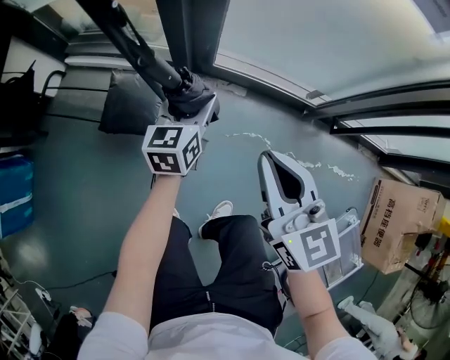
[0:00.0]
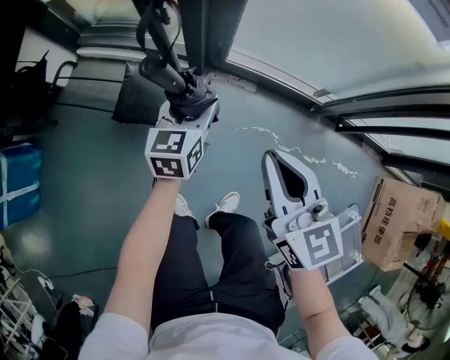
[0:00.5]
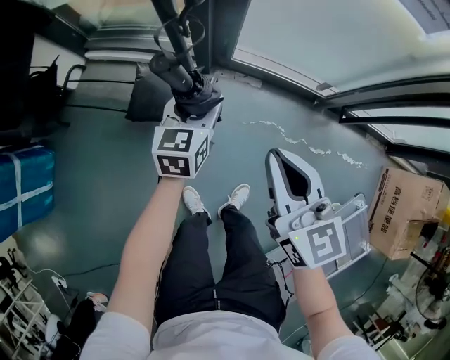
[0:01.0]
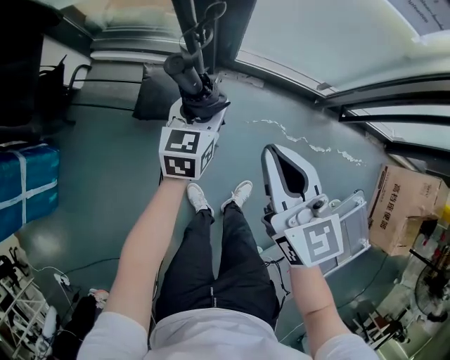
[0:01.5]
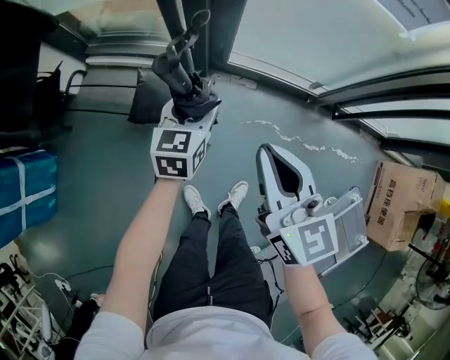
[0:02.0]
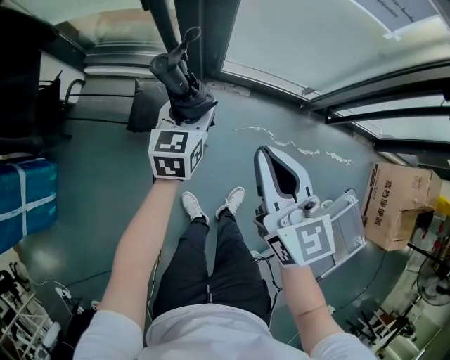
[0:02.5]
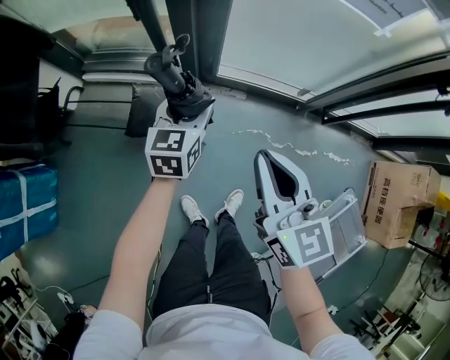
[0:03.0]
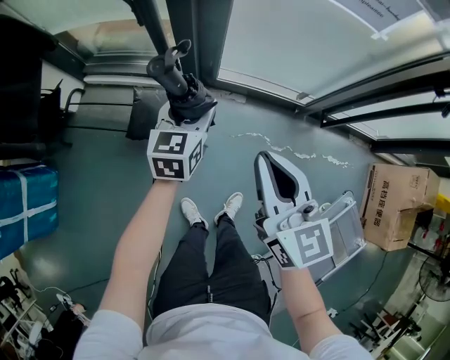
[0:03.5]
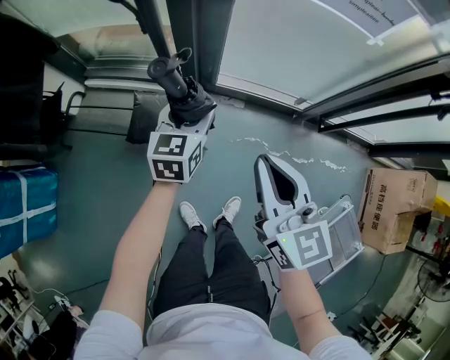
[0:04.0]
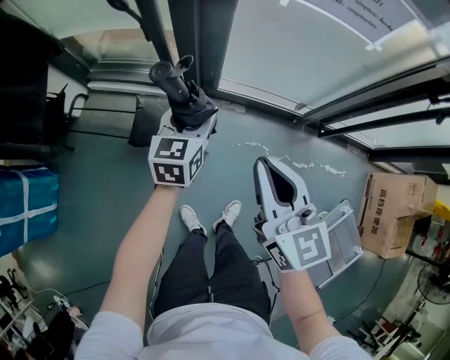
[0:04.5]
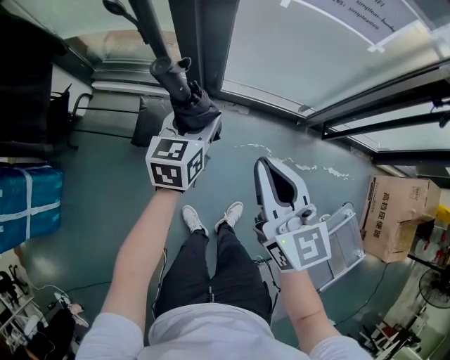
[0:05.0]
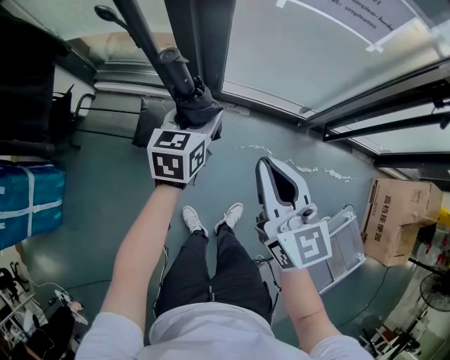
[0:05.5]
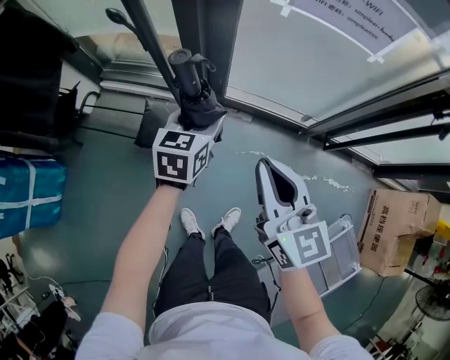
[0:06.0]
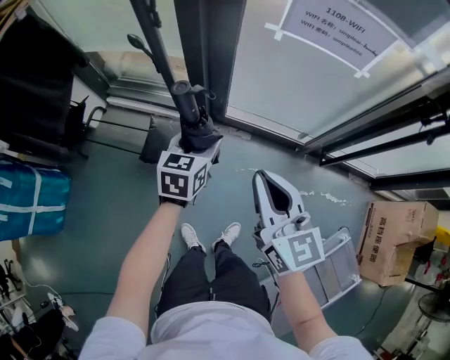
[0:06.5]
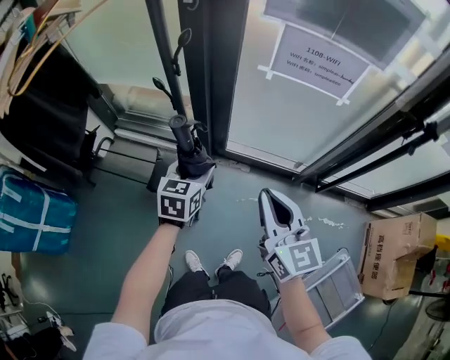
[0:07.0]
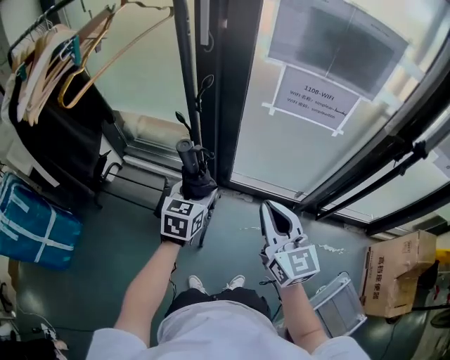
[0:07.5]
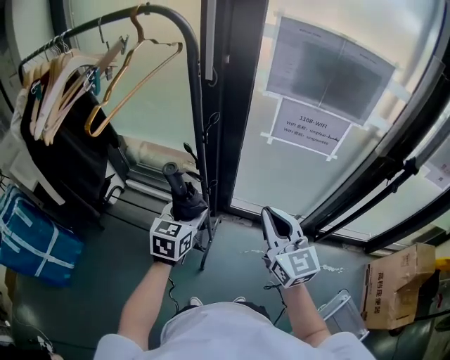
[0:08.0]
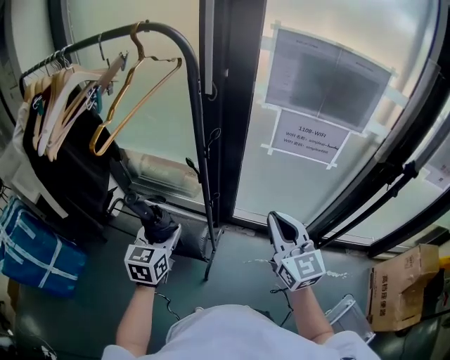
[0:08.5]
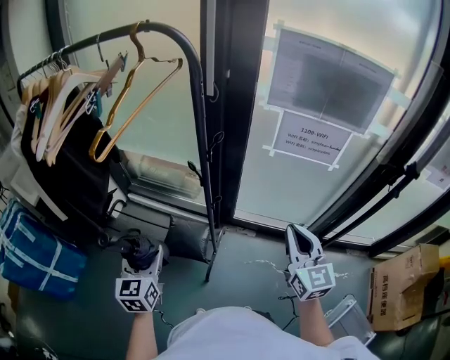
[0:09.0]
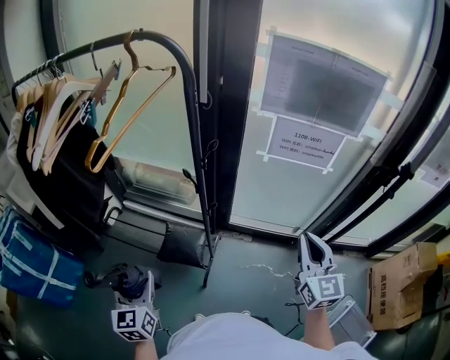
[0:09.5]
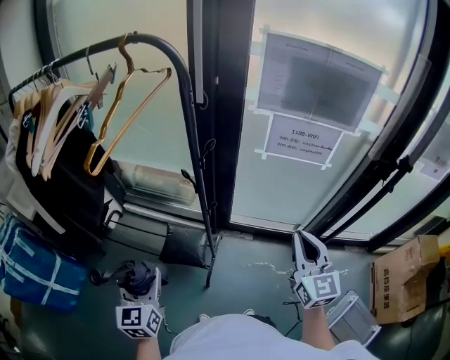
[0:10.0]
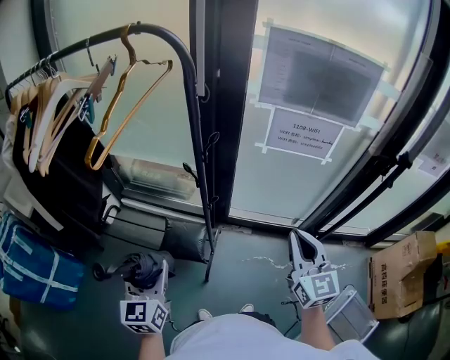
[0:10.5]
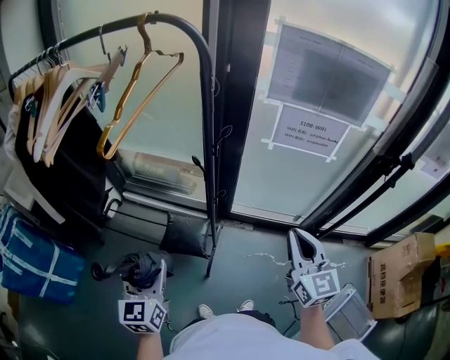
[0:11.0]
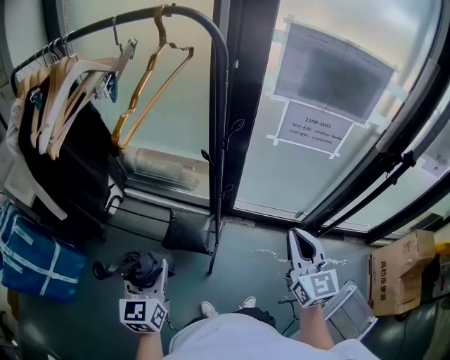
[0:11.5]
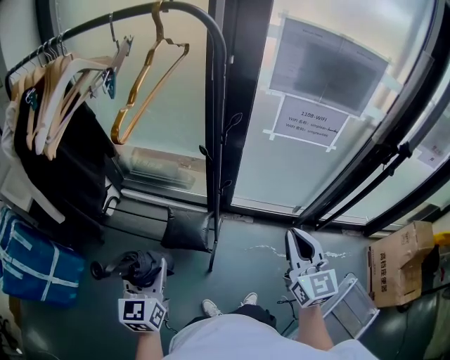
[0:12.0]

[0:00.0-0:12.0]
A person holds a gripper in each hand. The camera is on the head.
0:00.0 to 0:02.0: The two grippers go roughly 15 cm upward and to the left.
0:02.0 to 0:04.0: Both grippers travel together upward, some 5 cm.
0:04.0 to 0:06.0: The grippers stay close to where they were, moving slightly.
0:06.0 to 0:08.0: The left gripper moves upward and to the left, roughly 20 cm. Meanwhile the right gripper goes some 15 cm upward.
0:08.0 to 0:10.0: The right gripper travels to the right by approximately 5 cm; the left gripper heads to the left and backward, covering some 20 cm, and changes its angle by approximately 20 degrees.
0:10.0 to 0:12.0: The right gripper moves to the left, some 10 cm.

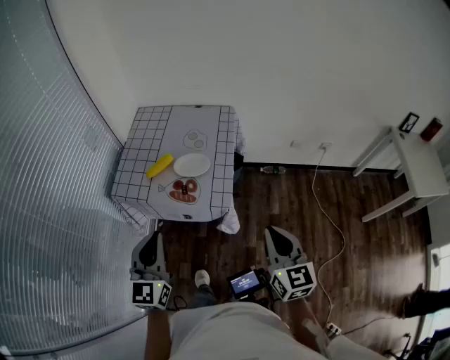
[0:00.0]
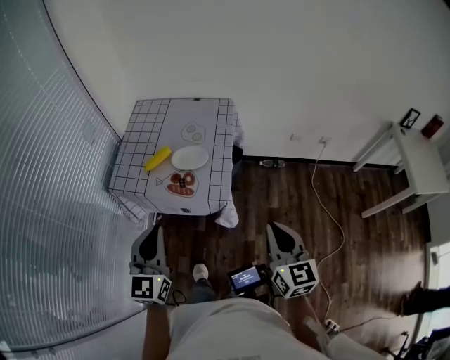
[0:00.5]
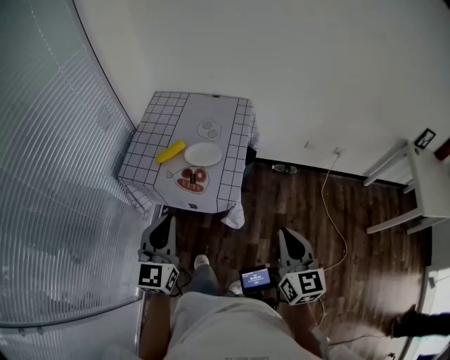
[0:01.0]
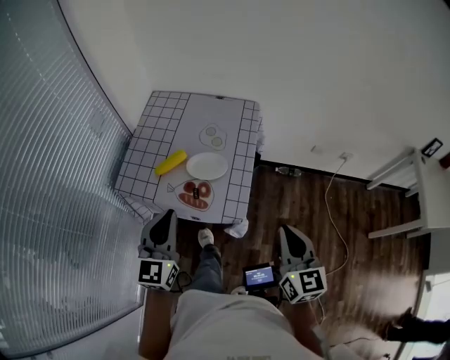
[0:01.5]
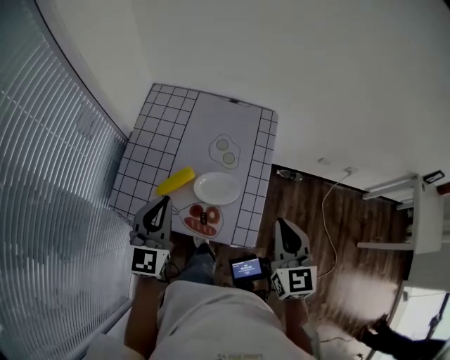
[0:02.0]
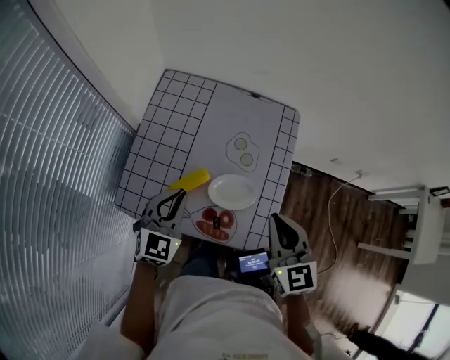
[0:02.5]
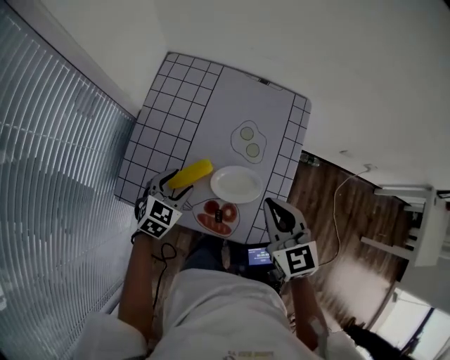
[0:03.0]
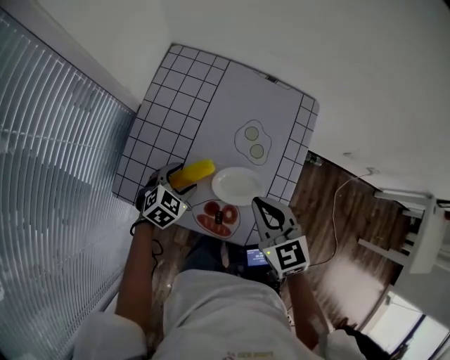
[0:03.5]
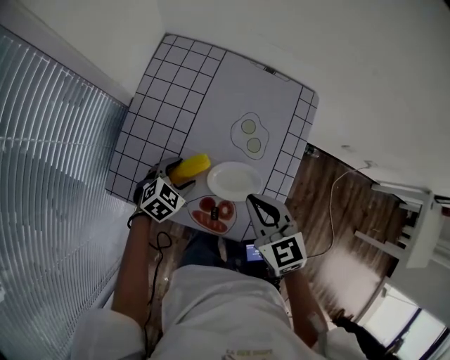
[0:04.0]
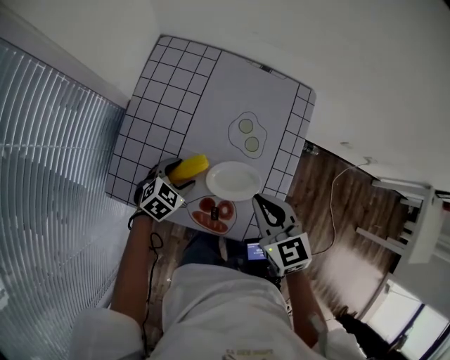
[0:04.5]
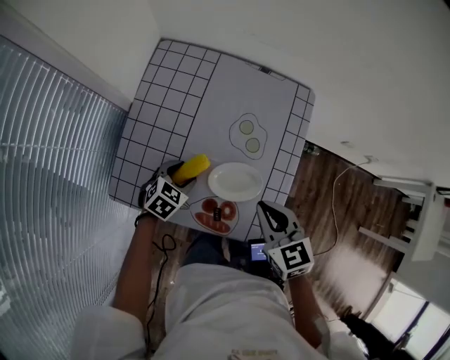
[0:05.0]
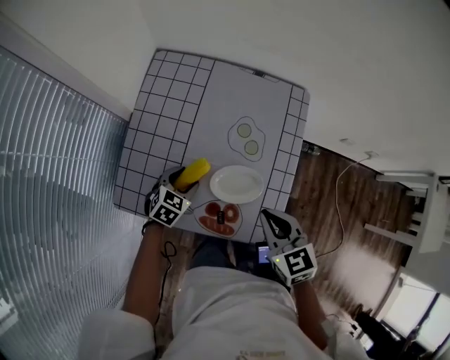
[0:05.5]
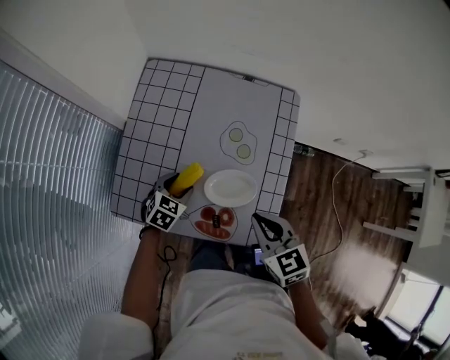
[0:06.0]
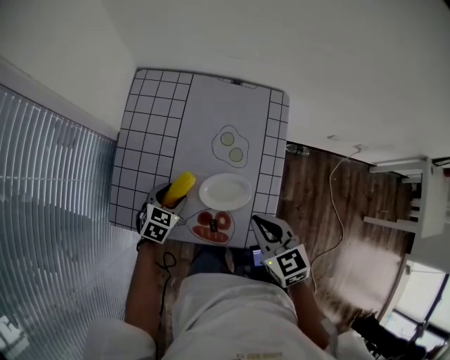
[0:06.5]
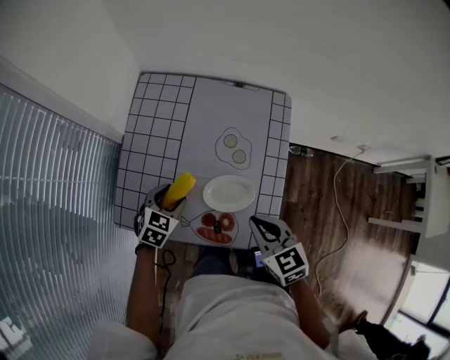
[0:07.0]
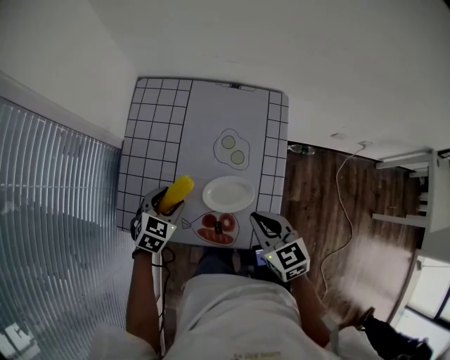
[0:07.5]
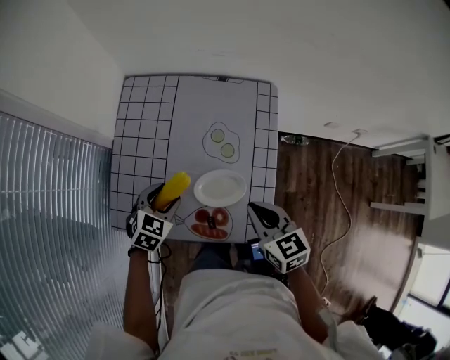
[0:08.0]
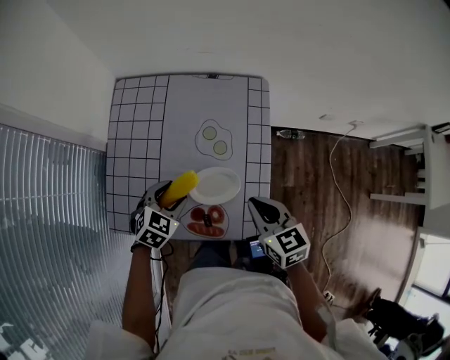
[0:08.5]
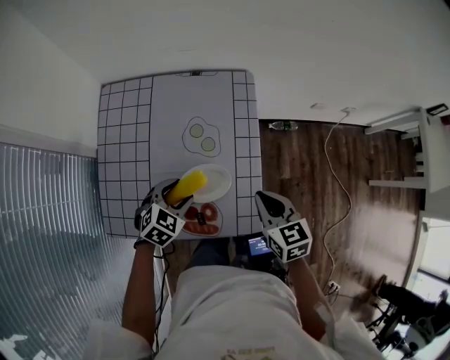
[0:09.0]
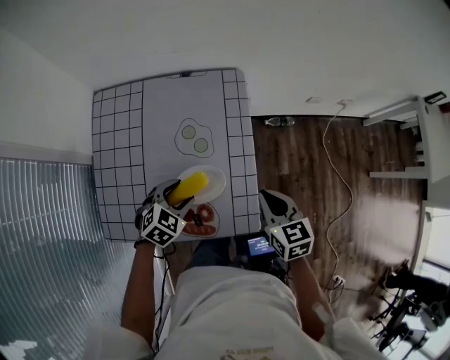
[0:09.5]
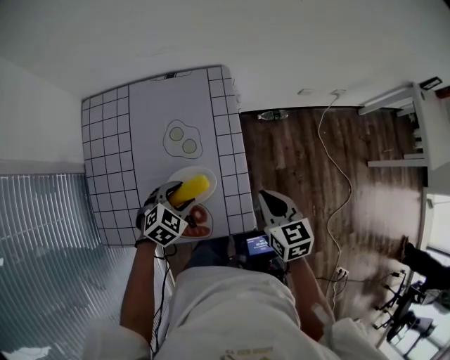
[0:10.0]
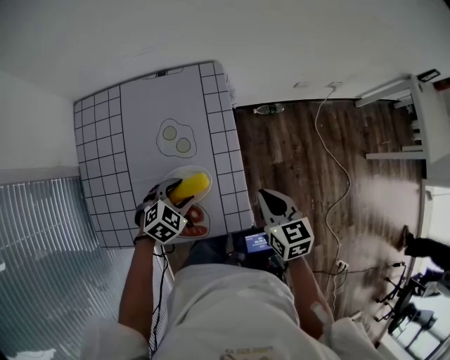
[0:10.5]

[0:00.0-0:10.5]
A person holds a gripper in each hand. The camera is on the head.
0:00.0 to 0:02.0: The two grippers go about 30 cm forward.
0:02.0 to 0:04.0: The left gripper heads downward, covering approximately 25 cm, angles its fingers downward, by about 50 degrees, and opens its fingers; the right gripper heads to the left, downward and forward, covering approximately 20 cm, and turns by roughly 30 degrees.
0:04.0 to 0:06.5: The right gripper shifts by approximately 5 cm.
0:06.5 to 0:08.5: The left gripper shifts some 5 cm upward.
0:08.5 to 0:10.5: Both grippers travel together to the right, roughly 10 cm. The left gripper changes its angle by some 20 degrees.

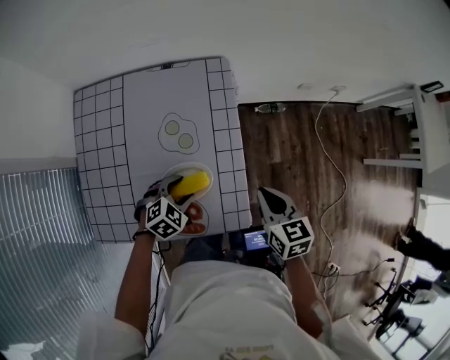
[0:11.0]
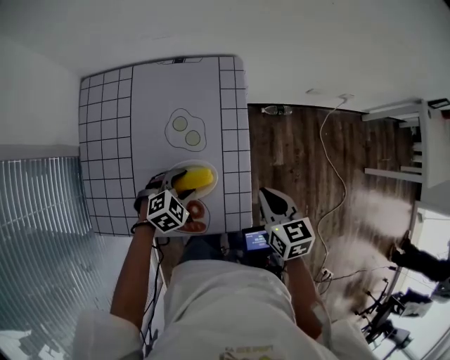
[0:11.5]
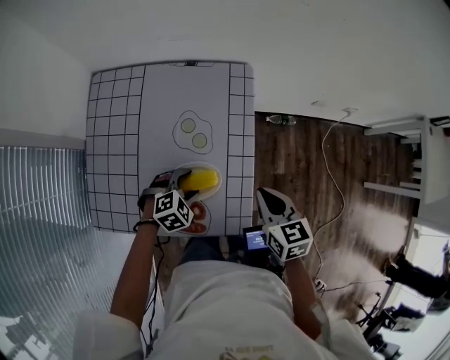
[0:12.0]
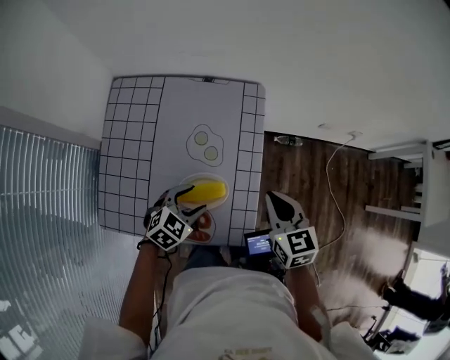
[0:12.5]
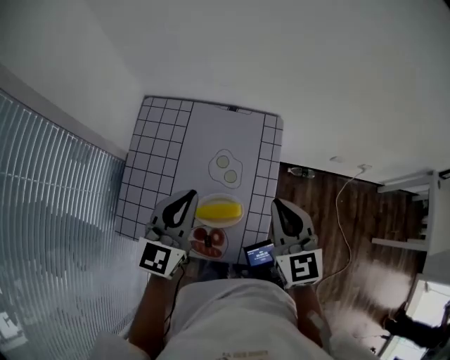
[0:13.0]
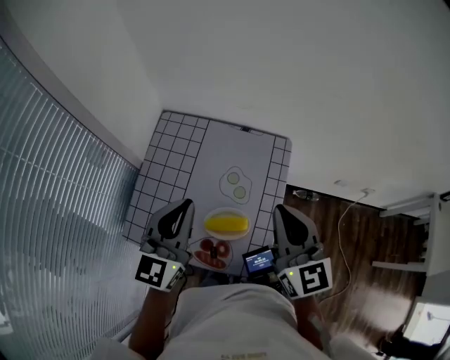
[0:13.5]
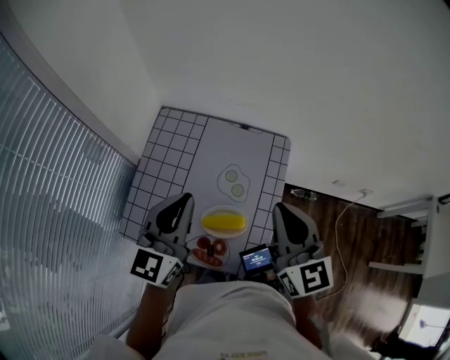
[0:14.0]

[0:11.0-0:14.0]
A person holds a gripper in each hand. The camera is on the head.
0:11.0 to 0:12.5: The grippers both shift upward by some 5 cm.
0:12.5 to 0:14.0: The right gripper travels upward and to the left by some 20 cm, and changes its angle by roughly 30 degrees. The left gripper travels upward by approximately 30 cm, points its fingers some 40 degrees further upward, and closes.

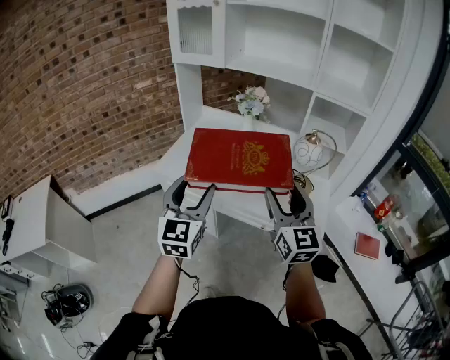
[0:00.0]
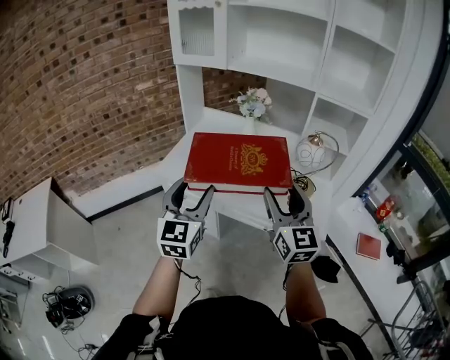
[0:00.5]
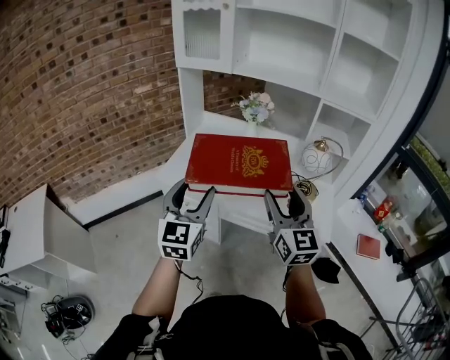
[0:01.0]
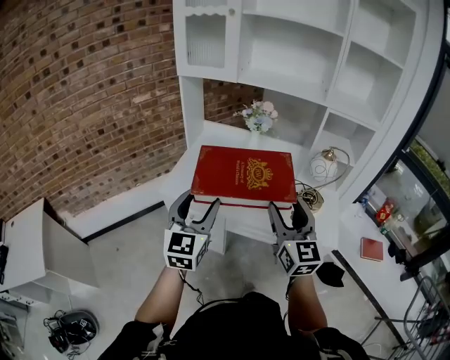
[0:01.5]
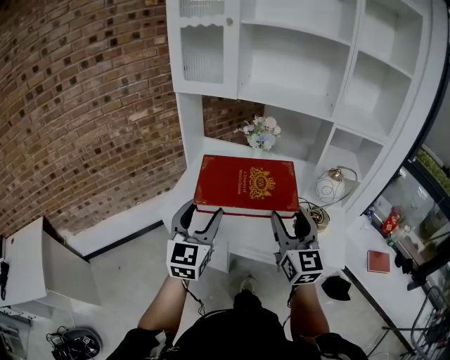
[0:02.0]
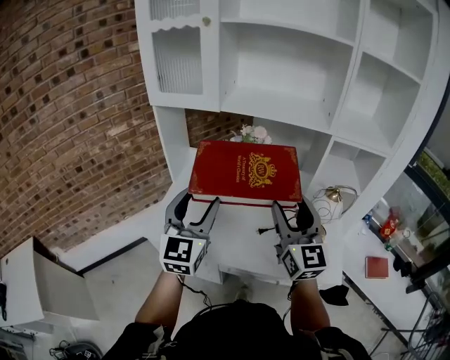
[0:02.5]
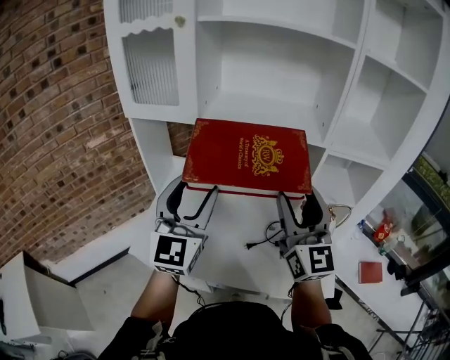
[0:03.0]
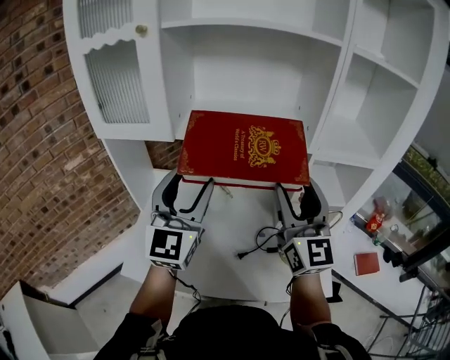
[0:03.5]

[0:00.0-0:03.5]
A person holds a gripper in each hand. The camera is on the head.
0:00.0 to 0:02.0: Both grippers travel together forward and to the left, some 15 cm.
0:02.0 to 0:03.5: Both grippers move forward and upward, some 30 cm.
